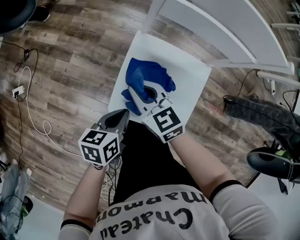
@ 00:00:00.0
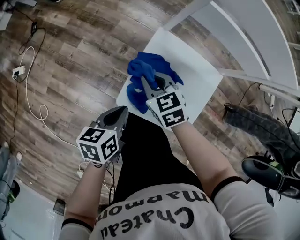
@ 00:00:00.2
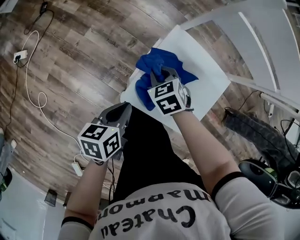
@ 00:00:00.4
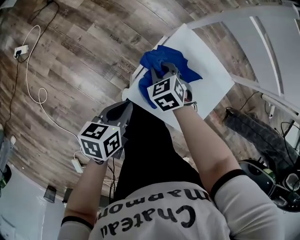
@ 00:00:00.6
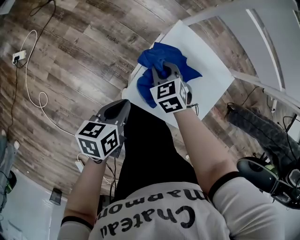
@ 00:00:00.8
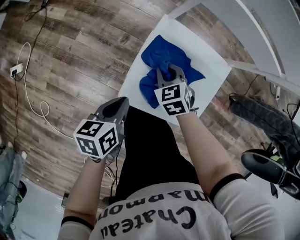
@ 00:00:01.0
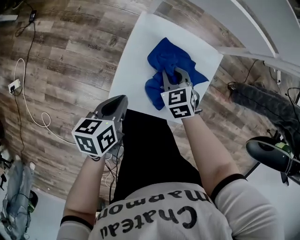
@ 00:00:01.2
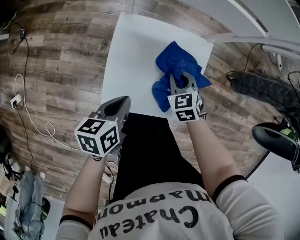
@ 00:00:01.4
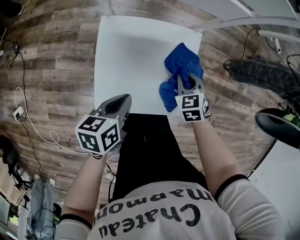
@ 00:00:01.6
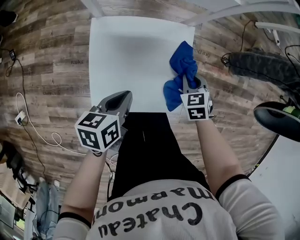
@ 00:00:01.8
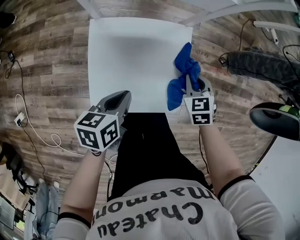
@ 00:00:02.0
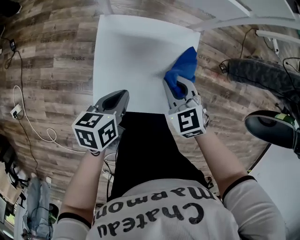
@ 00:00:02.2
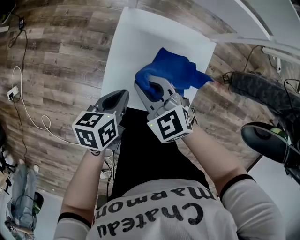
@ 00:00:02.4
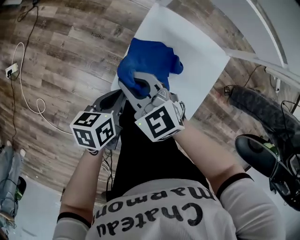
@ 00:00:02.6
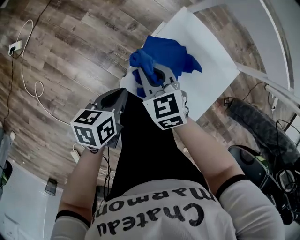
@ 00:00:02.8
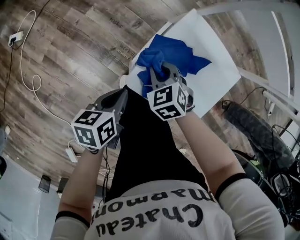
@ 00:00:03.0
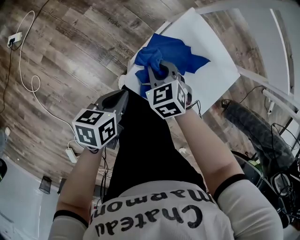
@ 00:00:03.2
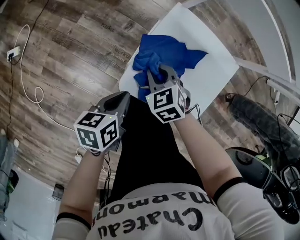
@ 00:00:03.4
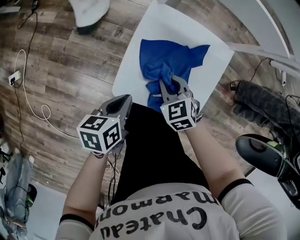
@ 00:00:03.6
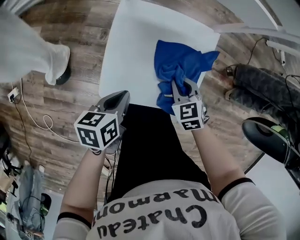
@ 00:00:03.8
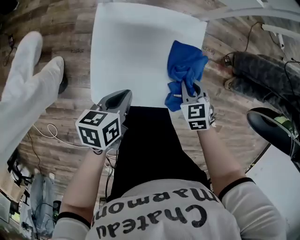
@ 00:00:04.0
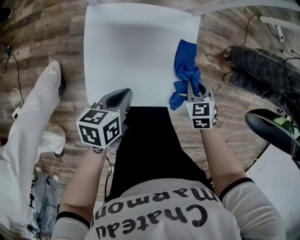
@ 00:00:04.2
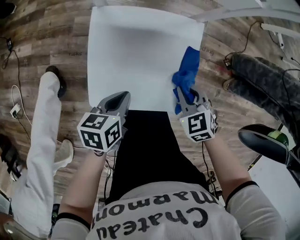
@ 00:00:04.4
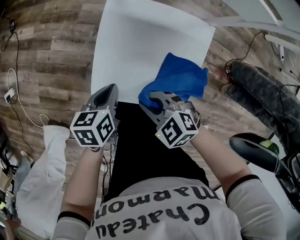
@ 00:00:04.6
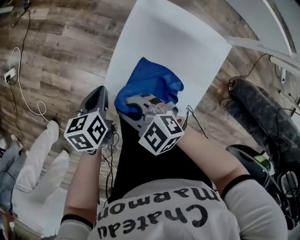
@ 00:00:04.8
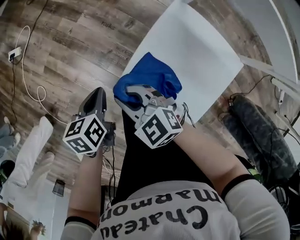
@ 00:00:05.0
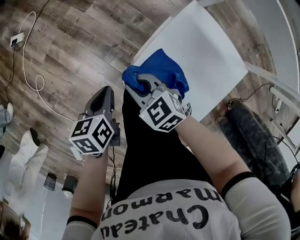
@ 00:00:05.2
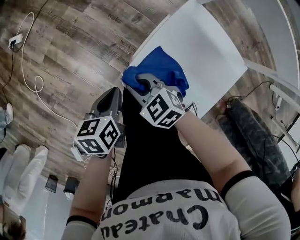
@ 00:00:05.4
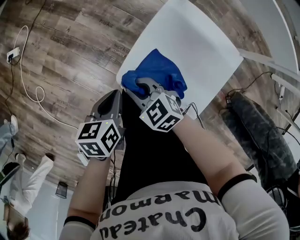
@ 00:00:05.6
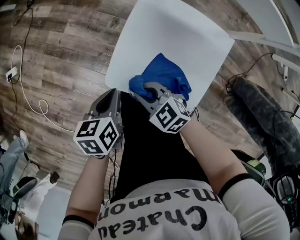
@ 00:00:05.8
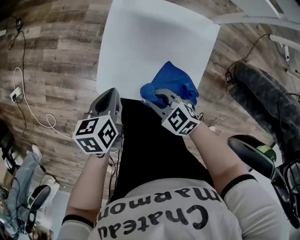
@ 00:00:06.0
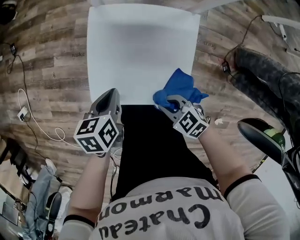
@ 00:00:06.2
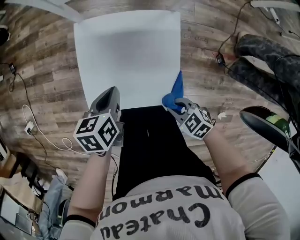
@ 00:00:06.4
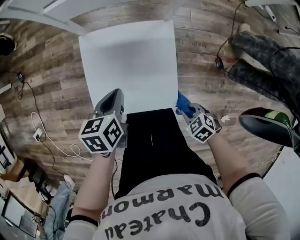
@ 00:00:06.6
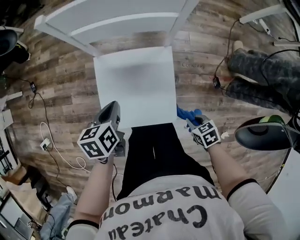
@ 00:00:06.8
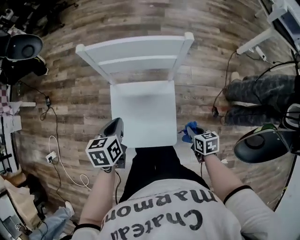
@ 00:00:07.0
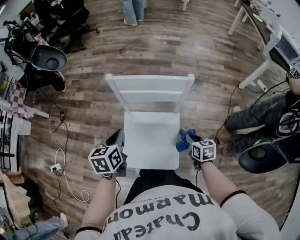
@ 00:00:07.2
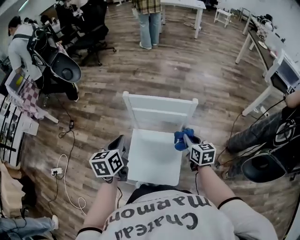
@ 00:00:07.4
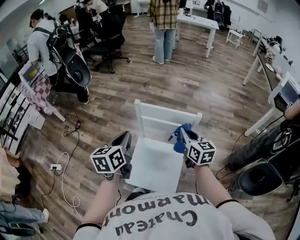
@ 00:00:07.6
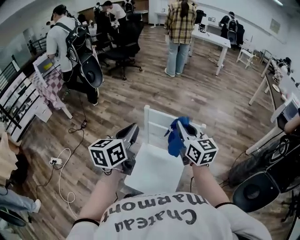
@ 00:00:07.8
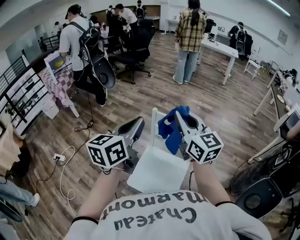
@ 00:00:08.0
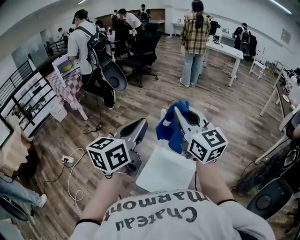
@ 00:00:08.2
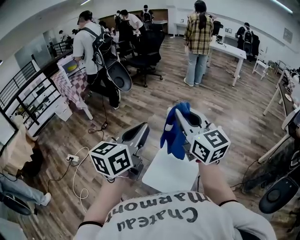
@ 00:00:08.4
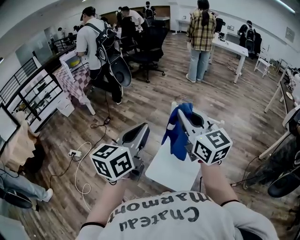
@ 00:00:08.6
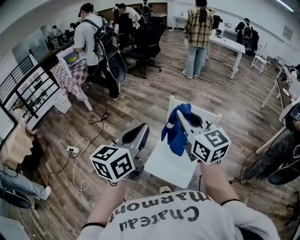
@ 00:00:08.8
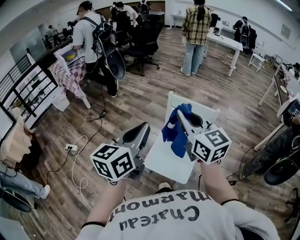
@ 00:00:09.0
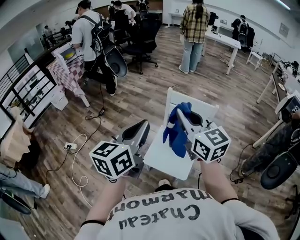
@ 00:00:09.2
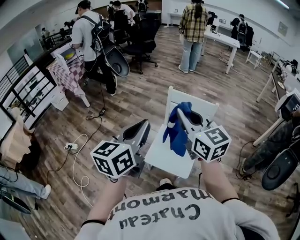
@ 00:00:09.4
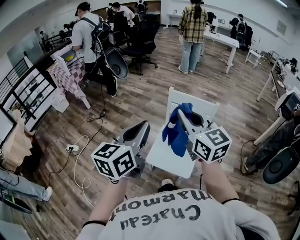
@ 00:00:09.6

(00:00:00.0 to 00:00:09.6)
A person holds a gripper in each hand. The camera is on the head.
00:00:00.0 - 00:00:01.6: The right gripper changes place by roughly 30 cm, and turns by about 40 degrees. Meanwhile the left gripper changes place by approximately 5 cm.
00:00:01.6 - 00:00:03.2: The left gripper moves approximately 15 cm, and swivels some 30 degrees. Meanwhile the right gripper goes upward and returns, some 15 cm each way, and rotates approximately 40 degrees.
00:00:03.2 - 00:00:04.8: The right gripper rotates about 30 degrees.
00:00:04.8 - 00:00:06.4: The left gripper moves some 15 cm, and swivels roughly 30 degrees; the right gripper moves about 30 cm, and rotates some 40 degrees.
00:00:06.4 - 00:00:08.0: The left gripper is displaced upward by some 60 cm, and tilts its fingers approximately 50 degrees upward; the right gripper goes about 70 cm upward and forward, and points its fingers some 60 degrees further upward.
00:00:08.0 - 00:00:09.6: Both grippers move backward and to the left, about 20 cm.

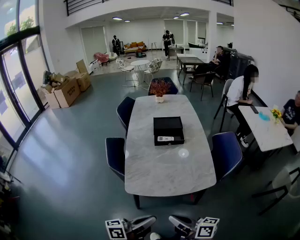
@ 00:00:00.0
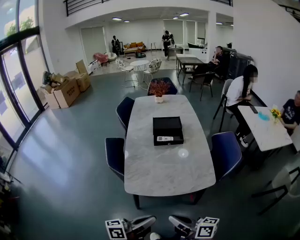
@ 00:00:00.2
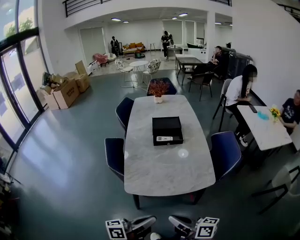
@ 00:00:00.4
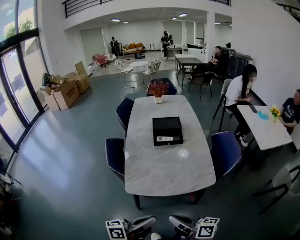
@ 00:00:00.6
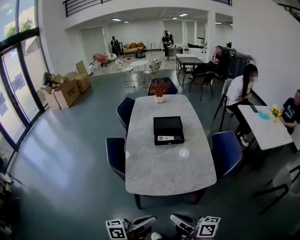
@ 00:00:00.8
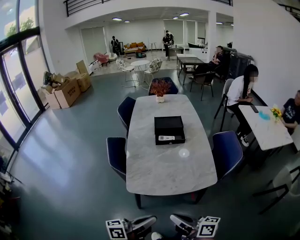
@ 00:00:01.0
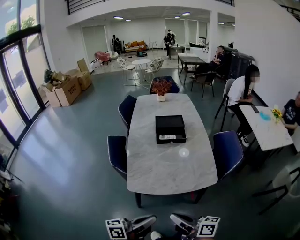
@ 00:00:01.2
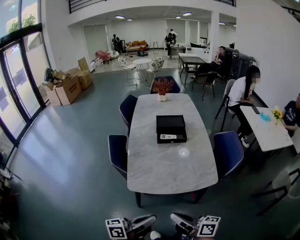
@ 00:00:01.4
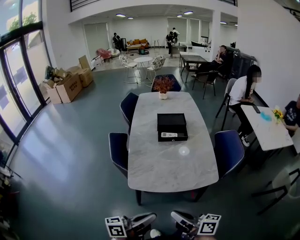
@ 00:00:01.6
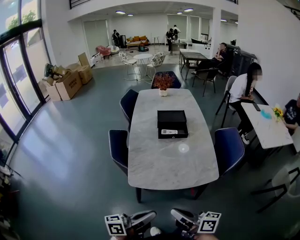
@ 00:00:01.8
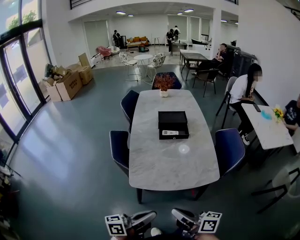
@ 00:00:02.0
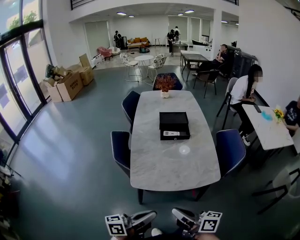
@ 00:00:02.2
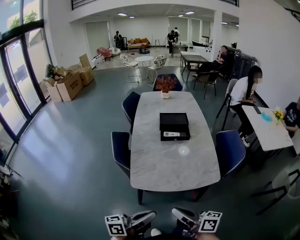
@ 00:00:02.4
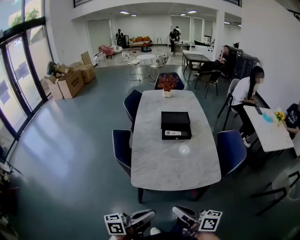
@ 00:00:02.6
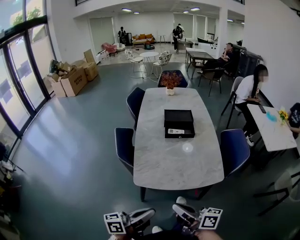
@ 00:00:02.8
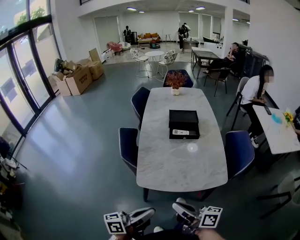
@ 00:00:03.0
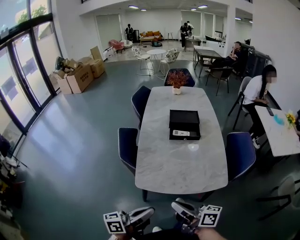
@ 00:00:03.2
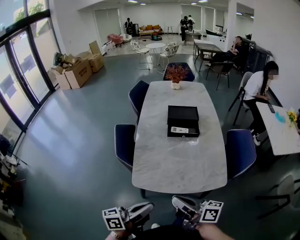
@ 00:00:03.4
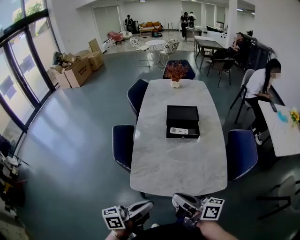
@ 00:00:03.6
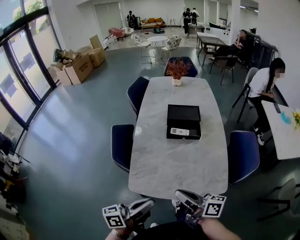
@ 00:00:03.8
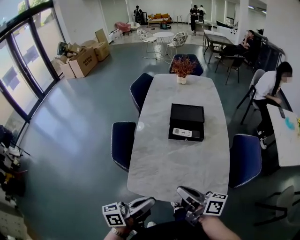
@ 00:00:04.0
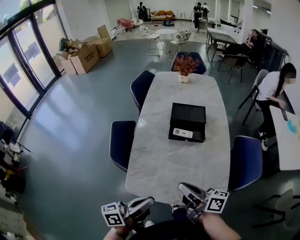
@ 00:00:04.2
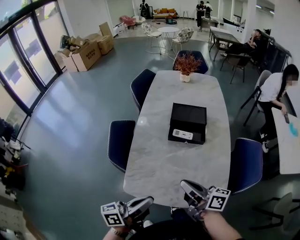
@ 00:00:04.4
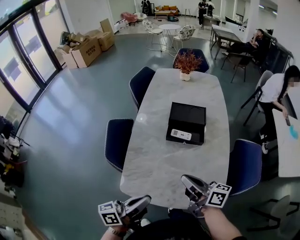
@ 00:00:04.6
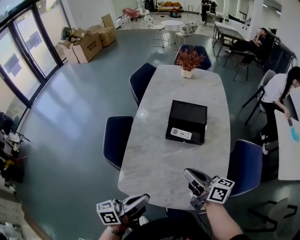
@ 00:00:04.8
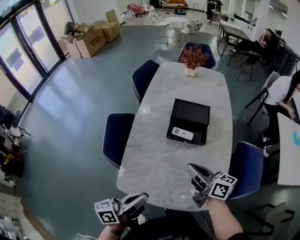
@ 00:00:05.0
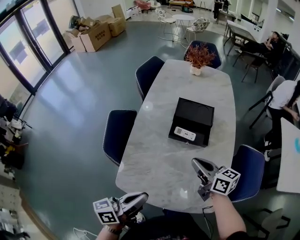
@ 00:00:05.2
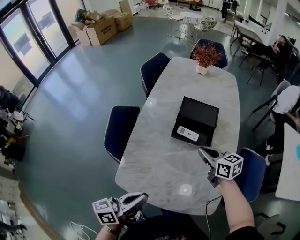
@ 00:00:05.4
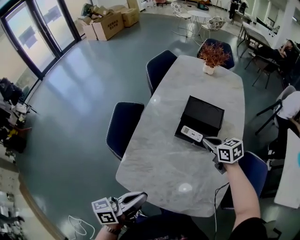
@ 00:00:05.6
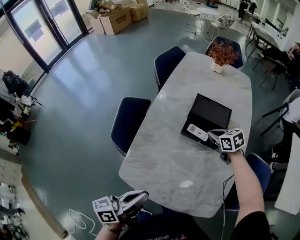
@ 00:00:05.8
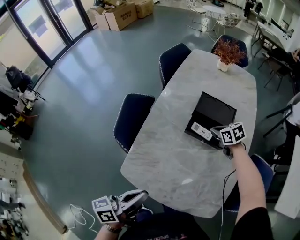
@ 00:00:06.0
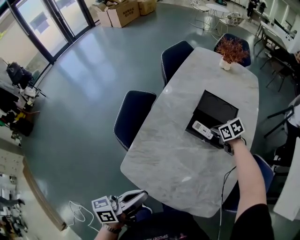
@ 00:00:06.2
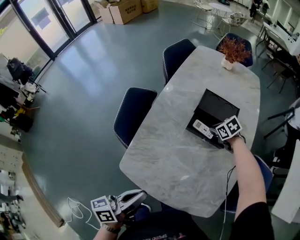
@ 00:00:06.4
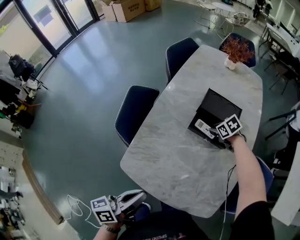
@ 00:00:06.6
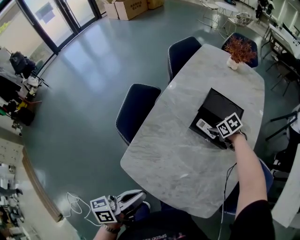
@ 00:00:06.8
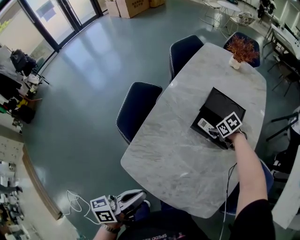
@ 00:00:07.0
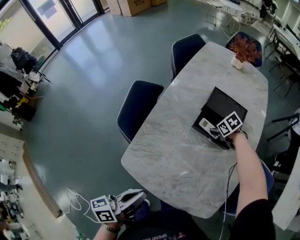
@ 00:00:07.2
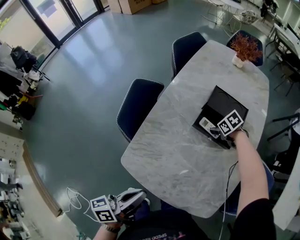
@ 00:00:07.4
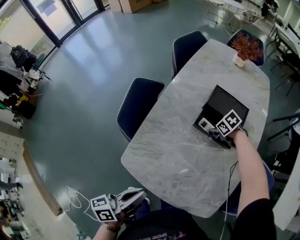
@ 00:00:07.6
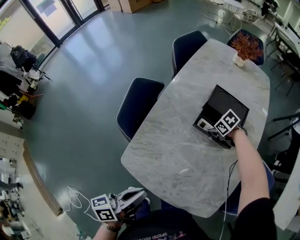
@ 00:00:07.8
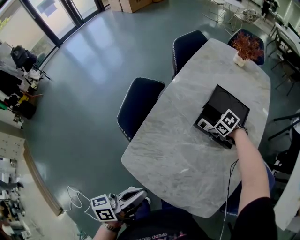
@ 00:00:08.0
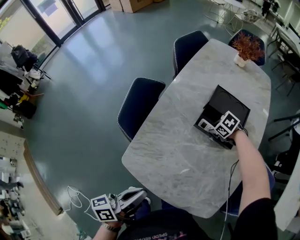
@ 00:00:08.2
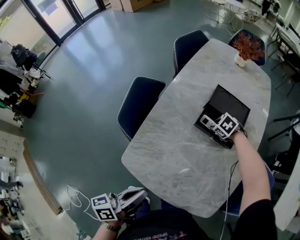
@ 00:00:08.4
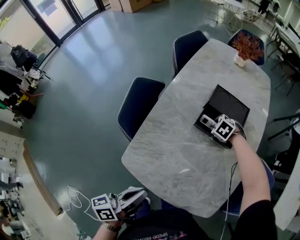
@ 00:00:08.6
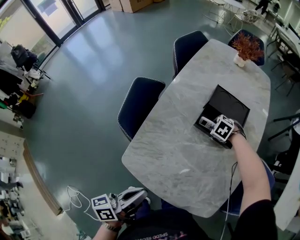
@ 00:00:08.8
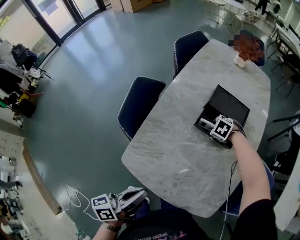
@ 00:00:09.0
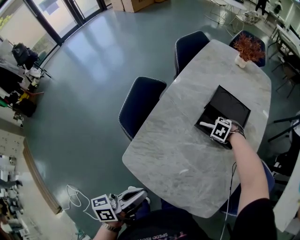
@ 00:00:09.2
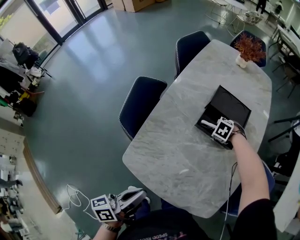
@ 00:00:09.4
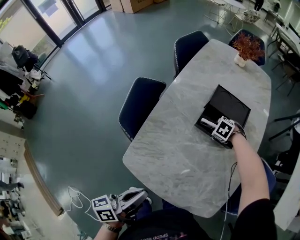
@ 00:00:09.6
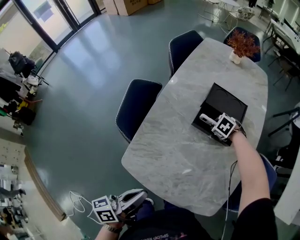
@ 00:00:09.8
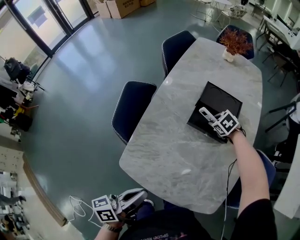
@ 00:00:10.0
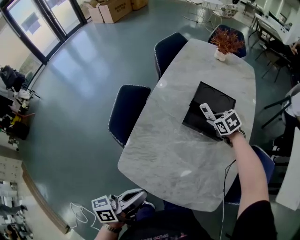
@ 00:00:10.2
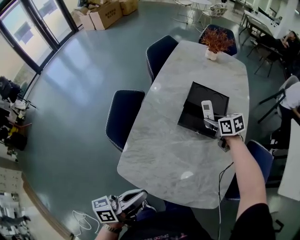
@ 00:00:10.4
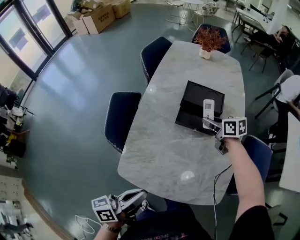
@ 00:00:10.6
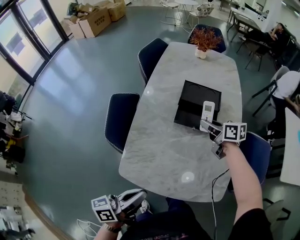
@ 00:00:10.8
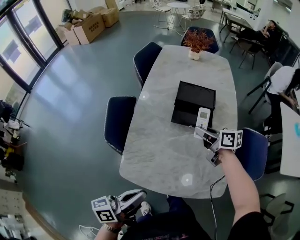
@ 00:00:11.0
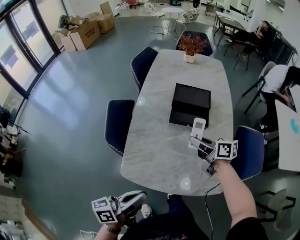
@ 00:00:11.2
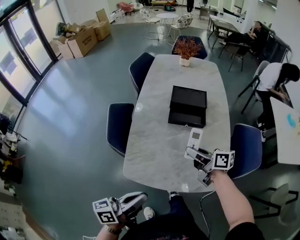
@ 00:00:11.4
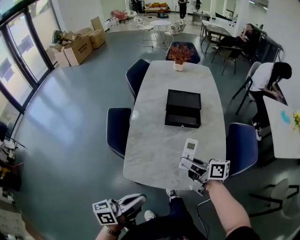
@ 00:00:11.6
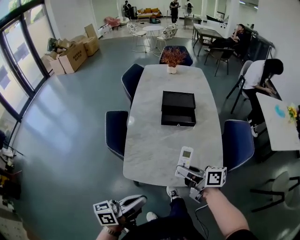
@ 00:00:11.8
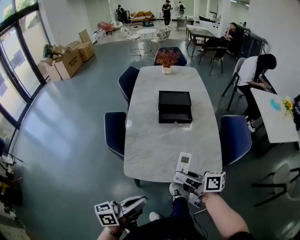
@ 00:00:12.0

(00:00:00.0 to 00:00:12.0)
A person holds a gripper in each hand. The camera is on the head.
00:00:00.0 - 00:00:01.6: There are only small adjustments of the grippers.
00:00:01.6 - 00:00:03.0: The right gripper shifts by some 5 cm.
00:00:03.0 - 00:00:04.4: The right gripper goes some 25 cm forward and to the right; the left gripper travels forward by about 20 cm.
00:00:04.4 - 00:00:06.0: The right gripper travels forward and downward by about 35 cm, and angles its fingers downward, by about 50 degrees, while the left gripper rotates approximately 20 degrees.
00:00:06.0 - 00:00:07.6: The right gripper heads downward, covering some 10 cm, rotates about 30 degrees, and opens its fingers.
00:00:07.6 - 00:00:09.0: The right gripper turns by some 30 degrees.
00:00:09.0 - 00:00:10.4: The right gripper travels upward by some 10 cm, and rolls clockwise, seen from behind, by some 50 degrees.
00:00:10.4 - 00:00:12.0: The left gripper is displaced backward by about 15 cm, and changes its angle by some 20 degrees. The right gripper moves backward, some 40 cm, and tips its fingers upward by some 40 degrees.

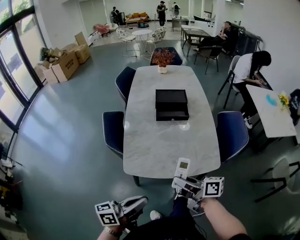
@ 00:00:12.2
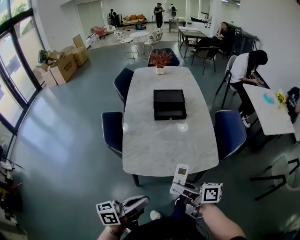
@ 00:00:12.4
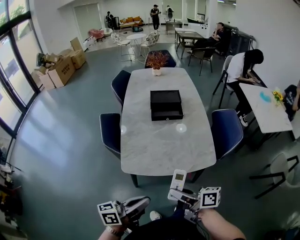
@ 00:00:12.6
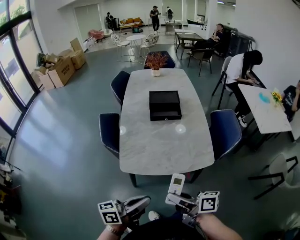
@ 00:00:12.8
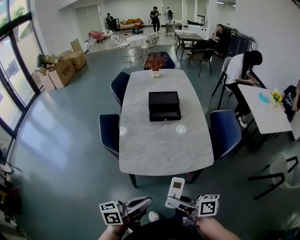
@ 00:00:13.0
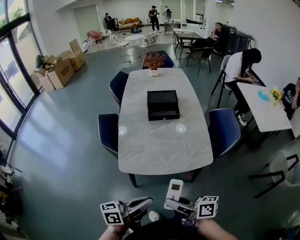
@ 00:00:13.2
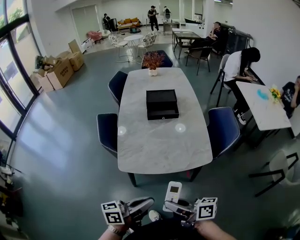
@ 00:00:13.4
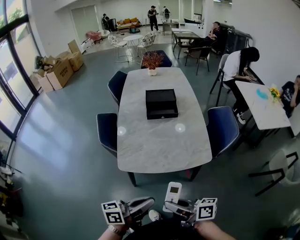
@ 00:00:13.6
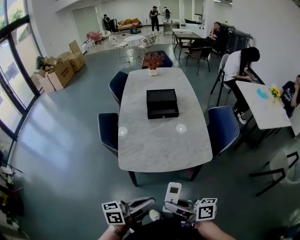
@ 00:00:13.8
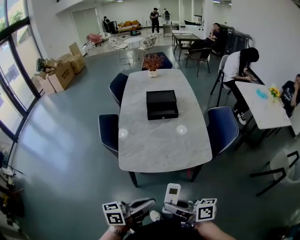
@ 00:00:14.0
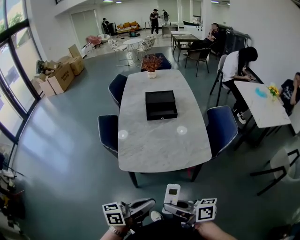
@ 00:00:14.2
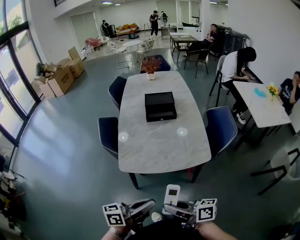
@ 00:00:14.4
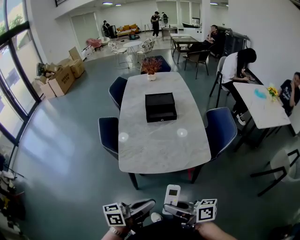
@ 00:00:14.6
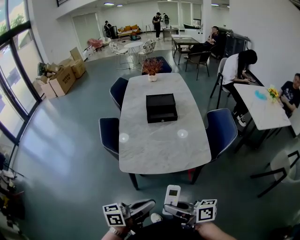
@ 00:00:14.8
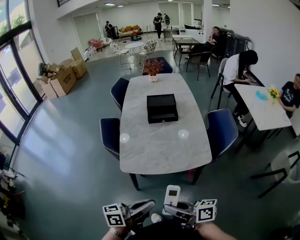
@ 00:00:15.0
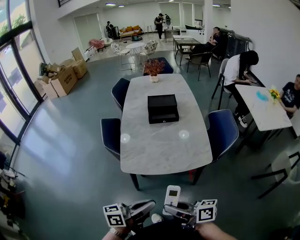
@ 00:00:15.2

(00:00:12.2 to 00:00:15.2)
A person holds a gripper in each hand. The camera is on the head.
00:00:12.2 - 00:00:13.8: The right gripper travels backward by approximately 15 cm. The left gripper heads to the right and backward, covering approximately 10 cm.
00:00:13.8 - 00:00:15.2: The grippers move only a little.
